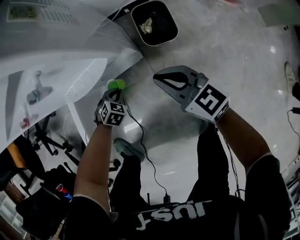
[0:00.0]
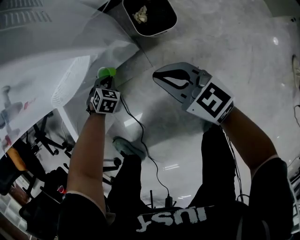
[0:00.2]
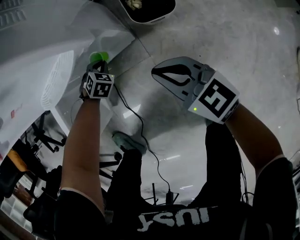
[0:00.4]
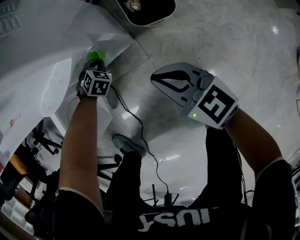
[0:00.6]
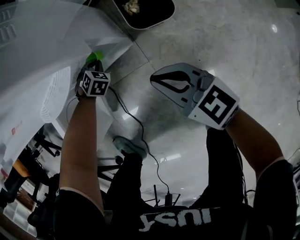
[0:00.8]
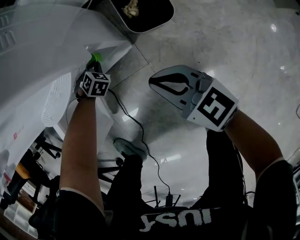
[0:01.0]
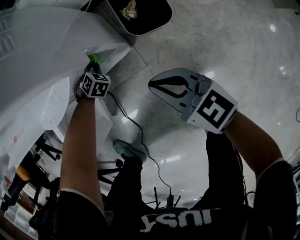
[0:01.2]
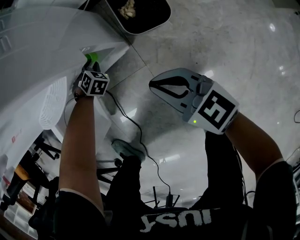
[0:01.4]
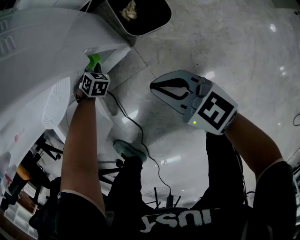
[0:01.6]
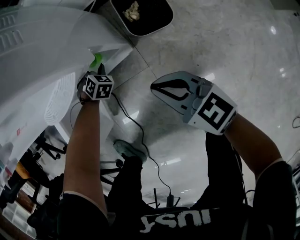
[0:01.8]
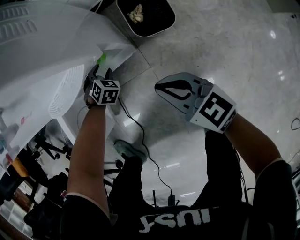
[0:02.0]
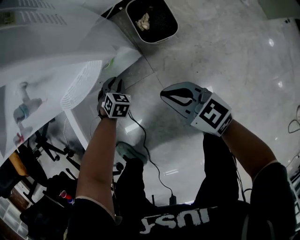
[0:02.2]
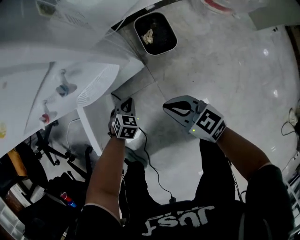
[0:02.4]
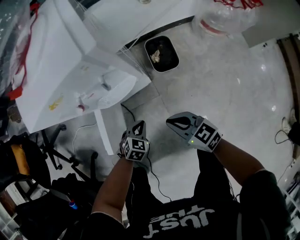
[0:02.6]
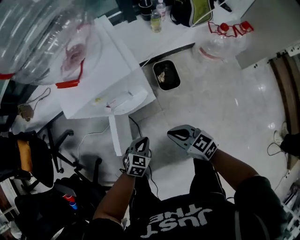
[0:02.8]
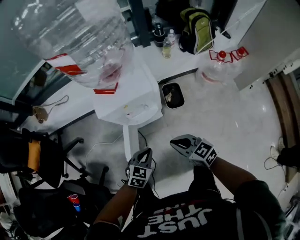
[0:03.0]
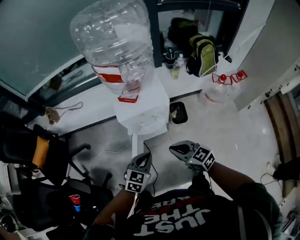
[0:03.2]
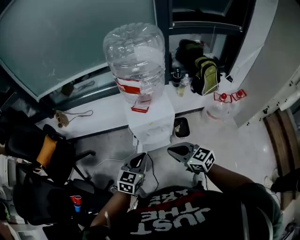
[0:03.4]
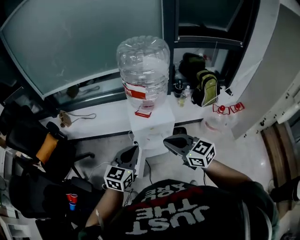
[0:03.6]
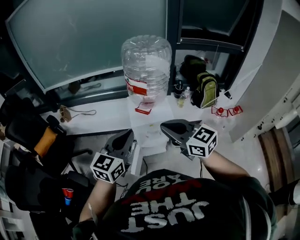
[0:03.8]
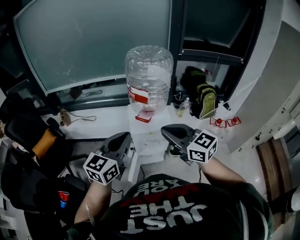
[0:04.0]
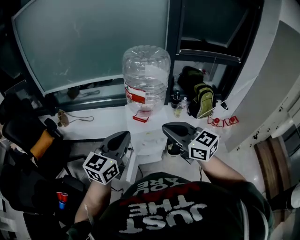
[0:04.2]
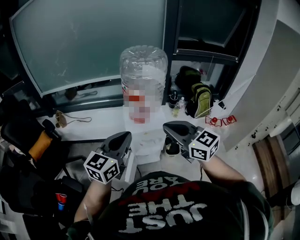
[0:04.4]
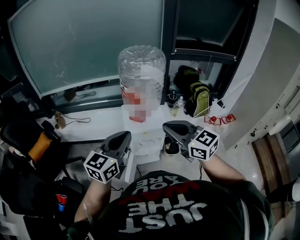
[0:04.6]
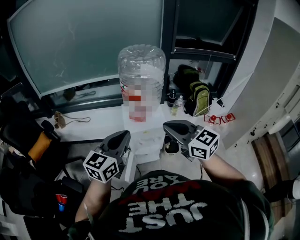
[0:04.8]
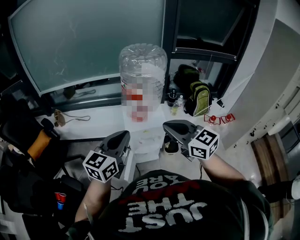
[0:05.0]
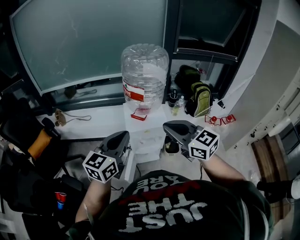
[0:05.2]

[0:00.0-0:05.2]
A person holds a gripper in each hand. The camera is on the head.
0:00.0 to 0:01.8: The left gripper travels forward and downward by approximately 15 cm, and opens its fingers; the right gripper goes approximately 10 cm downward.
0:01.8 to 0:03.4: Both grippers travel together upward, about 70 cm. The left gripper tips its fingers upward by about 40 degrees, and closes.
0:03.4 to 0:05.2: The grippers both shift upward by some 20 cm. The left gripper changes its angle by some 20 degrees. The right gripper changes its angle by approximately 20 degrees.

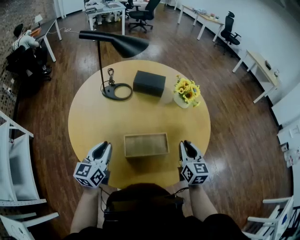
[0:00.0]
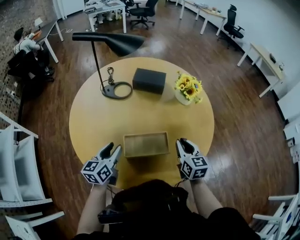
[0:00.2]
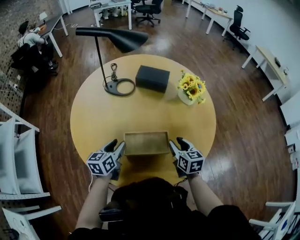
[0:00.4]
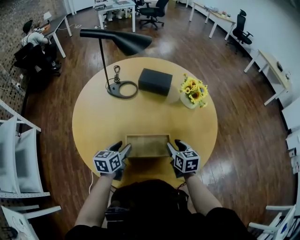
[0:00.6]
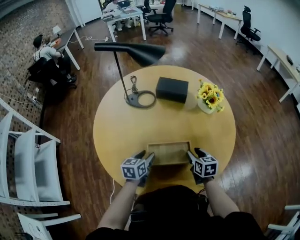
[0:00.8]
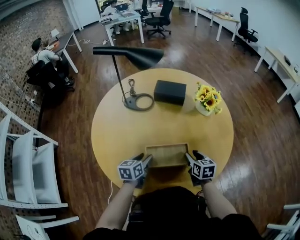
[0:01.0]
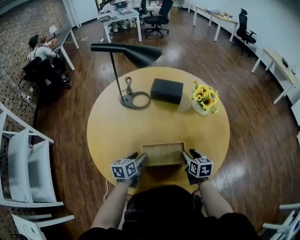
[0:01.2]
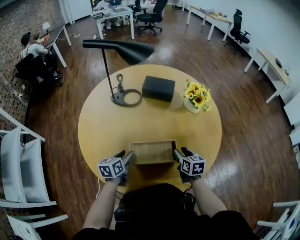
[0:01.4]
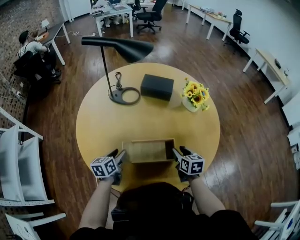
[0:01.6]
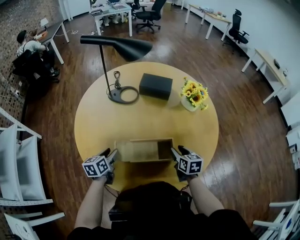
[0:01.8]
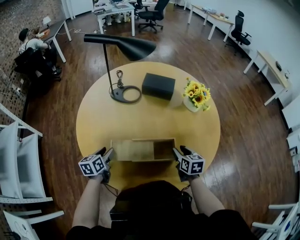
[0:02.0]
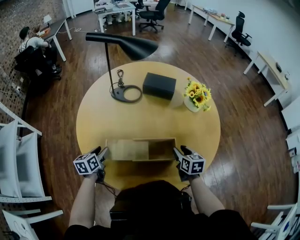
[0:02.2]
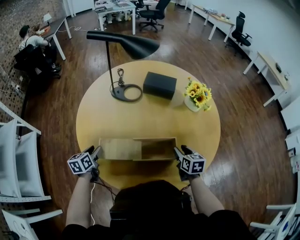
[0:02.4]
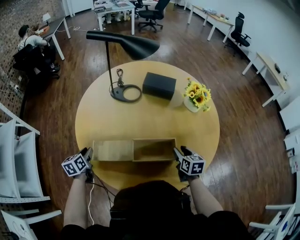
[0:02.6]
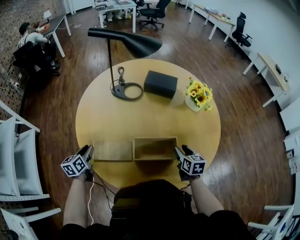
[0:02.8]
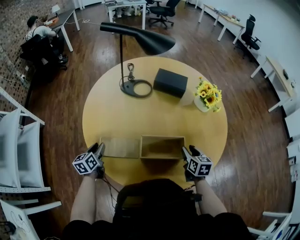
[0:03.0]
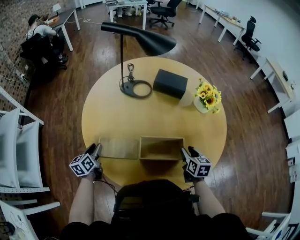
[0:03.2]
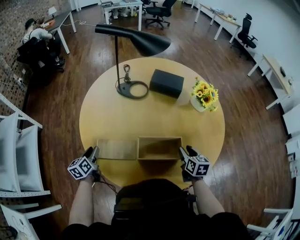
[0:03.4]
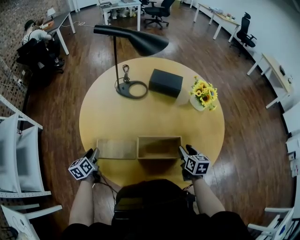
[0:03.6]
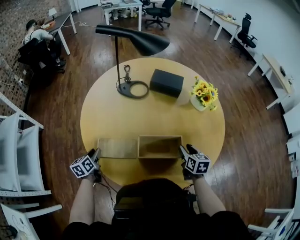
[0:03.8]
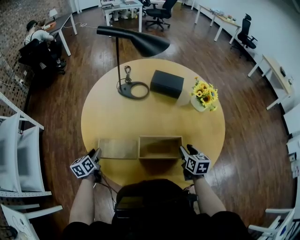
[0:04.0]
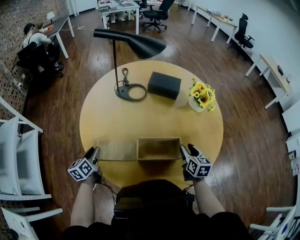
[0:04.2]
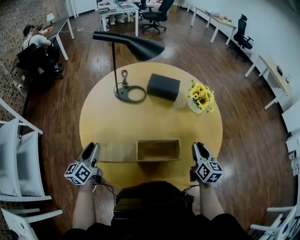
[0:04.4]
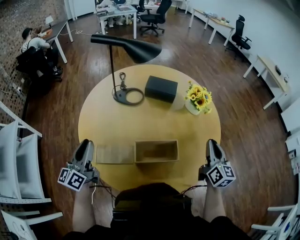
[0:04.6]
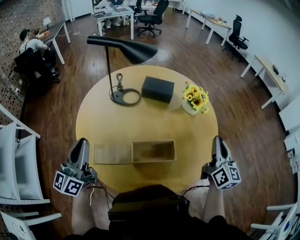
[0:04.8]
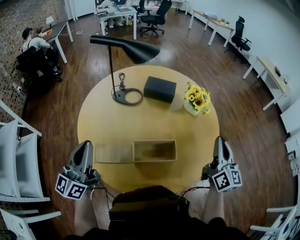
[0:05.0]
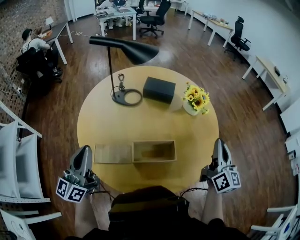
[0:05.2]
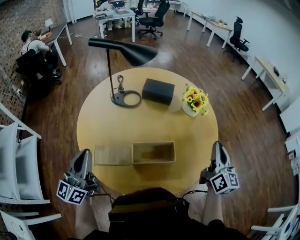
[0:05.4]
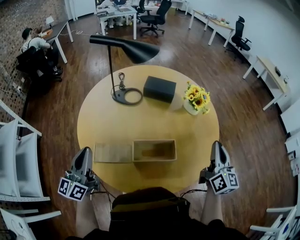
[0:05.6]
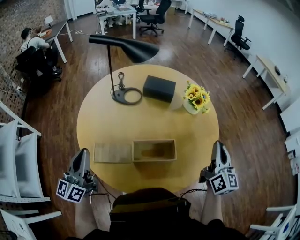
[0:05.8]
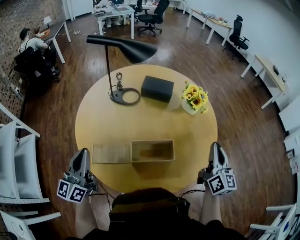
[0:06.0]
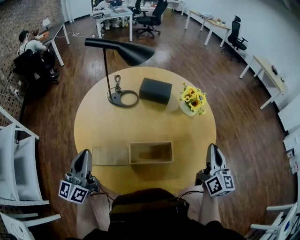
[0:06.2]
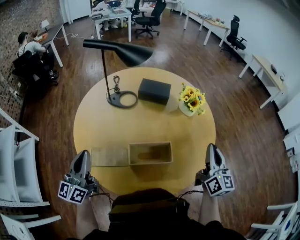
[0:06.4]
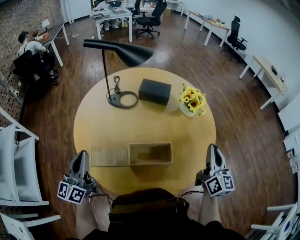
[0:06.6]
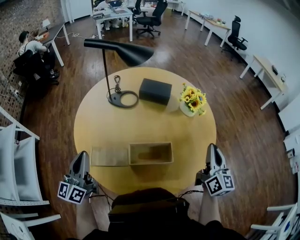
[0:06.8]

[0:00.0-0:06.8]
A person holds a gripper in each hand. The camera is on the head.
0:00.0 to 0:01.4: Both grippers travel together downward, about 15 cm. The right gripper rotates roughly 30 degrees, and opens its fingers. The left gripper changes its angle by roughly 20 degrees, and opens its fingers.
0:01.4 to 0:02.8: The left gripper travels to the left by about 20 cm.
0:02.8 to 0:04.0: The left gripper shifts by approximately 5 cm.
0:04.0 to 0:05.4: The left gripper heads upward, covering some 30 cm, tips its fingers upward by roughly 50 degrees, and closes up; the right gripper goes about 25 cm upward and to the right, points its fingers about 40 degrees further upward, and closes.
0:05.4 to 0:06.8: The grippers move only a little.

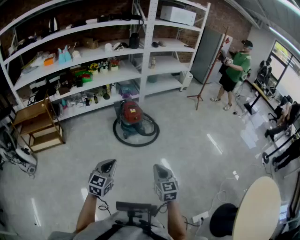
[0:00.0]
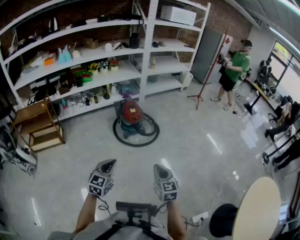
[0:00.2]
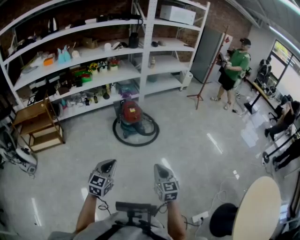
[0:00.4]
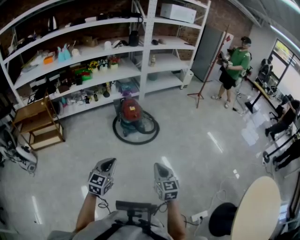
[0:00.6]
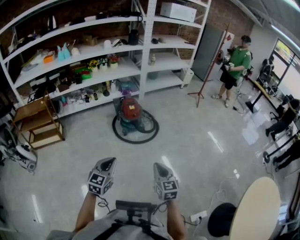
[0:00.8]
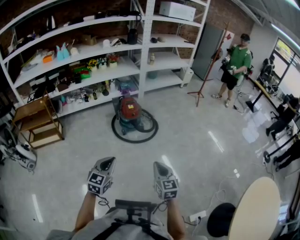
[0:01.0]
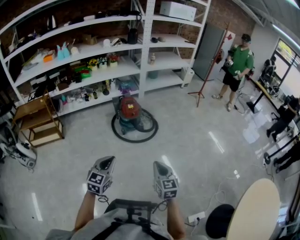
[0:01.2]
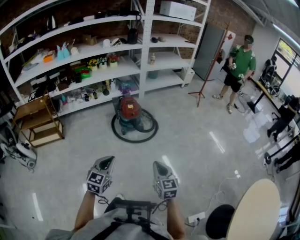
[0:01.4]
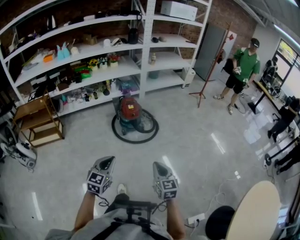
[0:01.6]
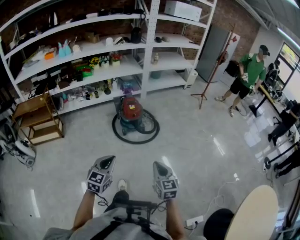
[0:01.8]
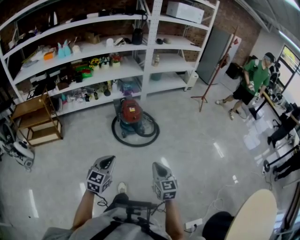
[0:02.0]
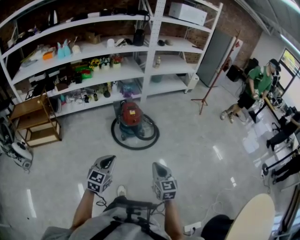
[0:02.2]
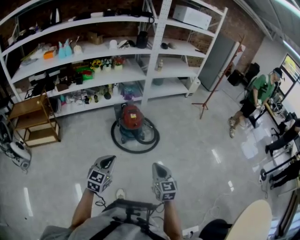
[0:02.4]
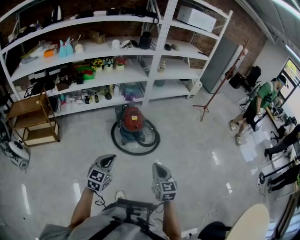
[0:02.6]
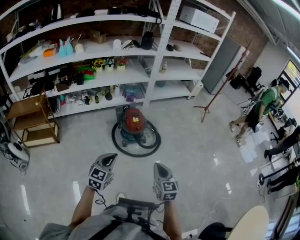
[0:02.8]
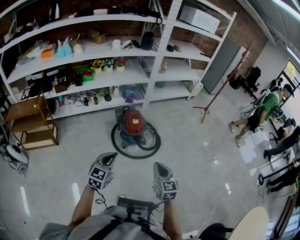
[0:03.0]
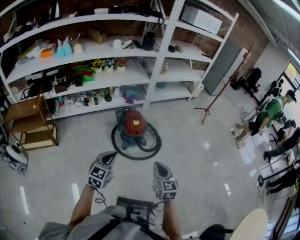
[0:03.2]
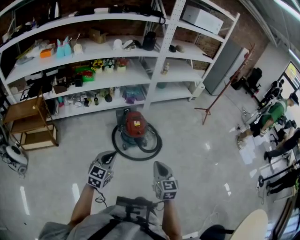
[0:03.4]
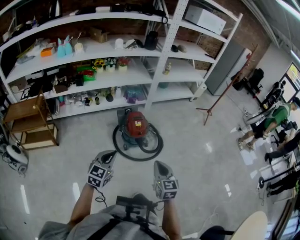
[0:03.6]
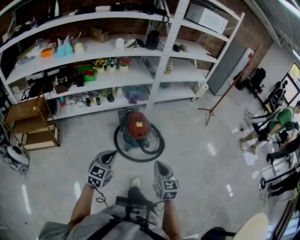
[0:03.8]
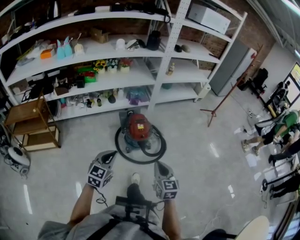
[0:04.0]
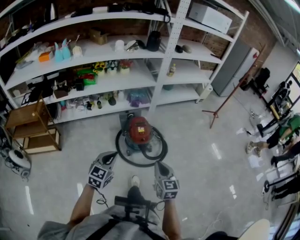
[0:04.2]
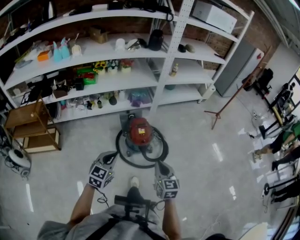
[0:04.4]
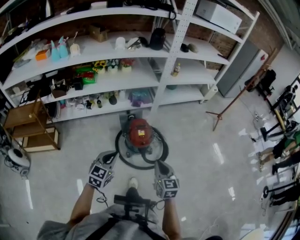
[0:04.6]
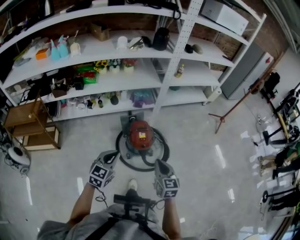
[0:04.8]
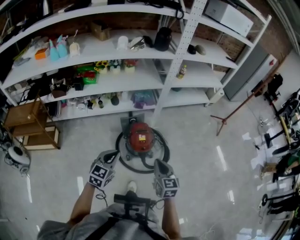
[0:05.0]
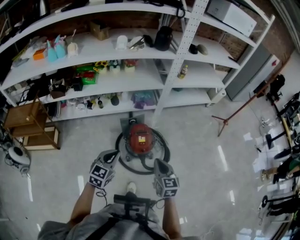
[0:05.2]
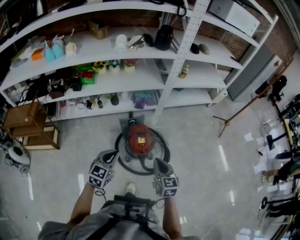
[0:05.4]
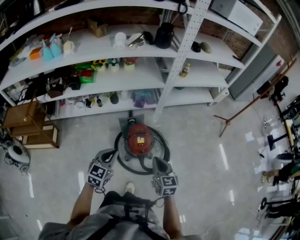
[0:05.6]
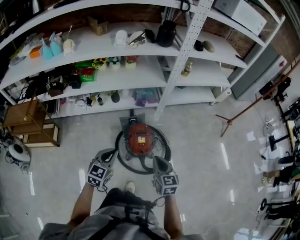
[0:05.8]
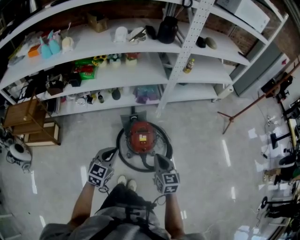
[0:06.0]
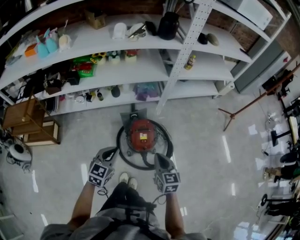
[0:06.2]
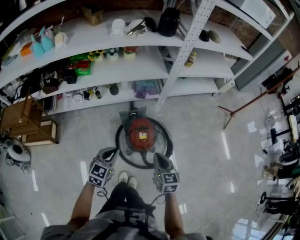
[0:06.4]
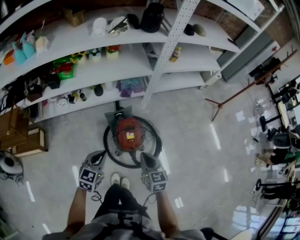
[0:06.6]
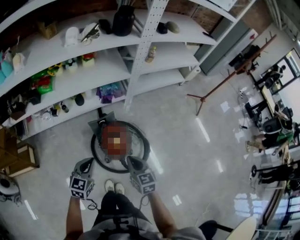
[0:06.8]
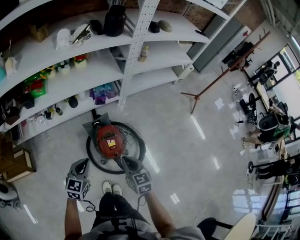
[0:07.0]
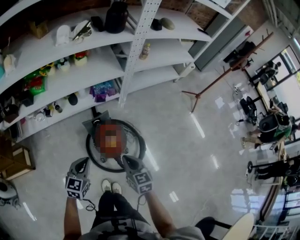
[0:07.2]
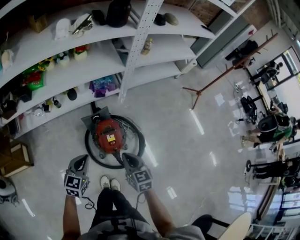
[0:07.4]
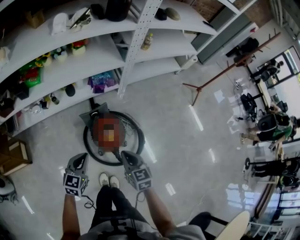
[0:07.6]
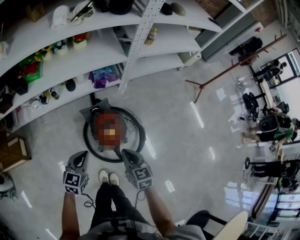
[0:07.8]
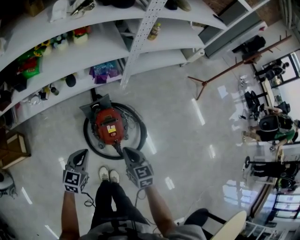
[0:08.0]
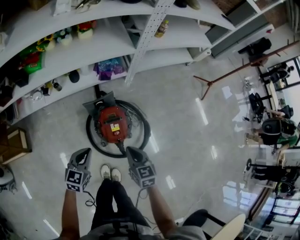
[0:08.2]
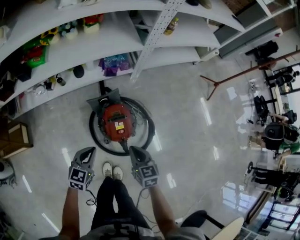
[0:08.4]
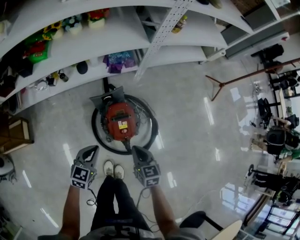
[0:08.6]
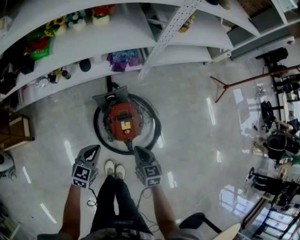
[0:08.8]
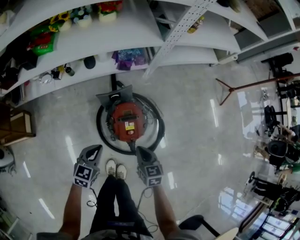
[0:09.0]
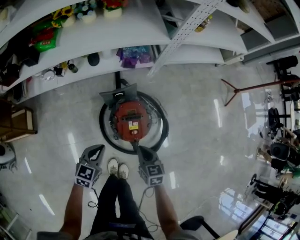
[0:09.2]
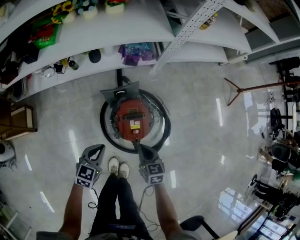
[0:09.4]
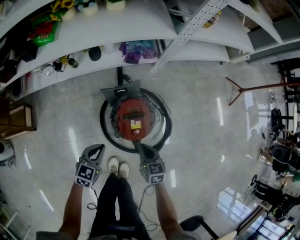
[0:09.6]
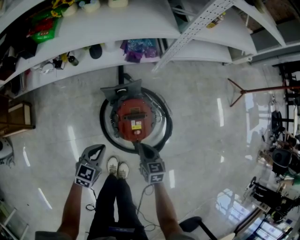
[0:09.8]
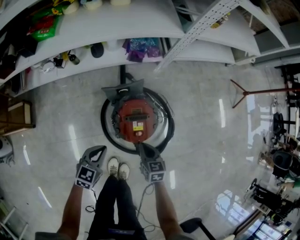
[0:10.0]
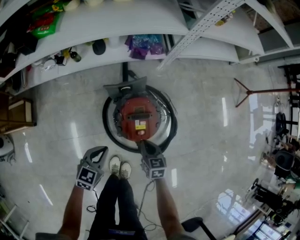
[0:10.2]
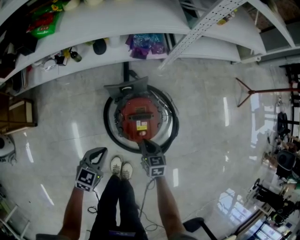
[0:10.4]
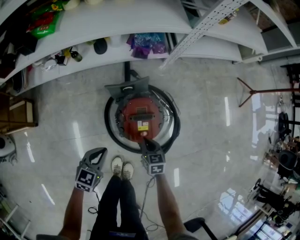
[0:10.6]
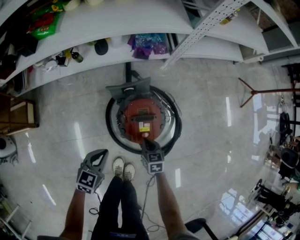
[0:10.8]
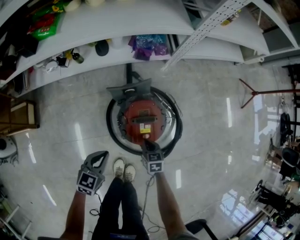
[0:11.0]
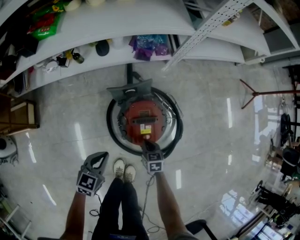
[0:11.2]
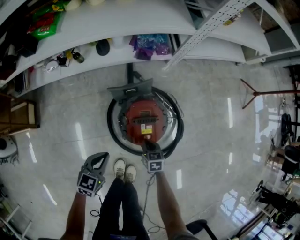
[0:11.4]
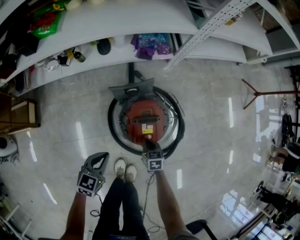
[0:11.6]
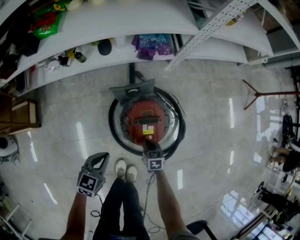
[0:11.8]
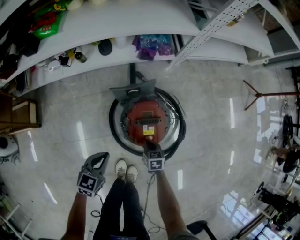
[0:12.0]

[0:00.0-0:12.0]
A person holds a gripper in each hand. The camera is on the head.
0:00.0 to 0:01.6: Both grippers travel together to the right, approximately 5 cm.
0:01.6 to 0:03.0: Both grippers travel together forward and to the left, approximately 25 cm.
0:03.0 to 0:04.4: The two grippers go some 20 cm forward.
0:04.4 to 0:06.0: Both grippers move forward, approximately 25 cm.
0:06.0 to 0:07.6: The left gripper moves downward and forward, approximately 10 cm; the right gripper travels forward and downward by approximately 10 cm.
0:07.6 to 0:09.0: The two grippers go some 15 cm downward.
0:09.0 to 0:10.4: The right gripper travels downward by approximately 15 cm. The left gripper is displaced downward by roughly 10 cm.
0:10.4 to 0:12.0: The right gripper travels downward by some 10 cm.
